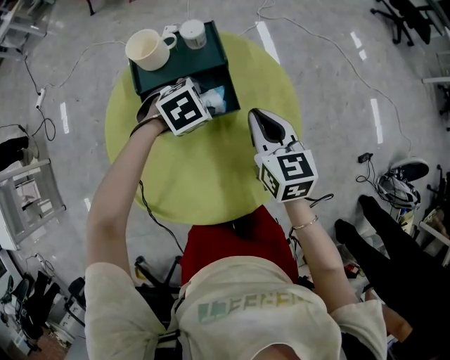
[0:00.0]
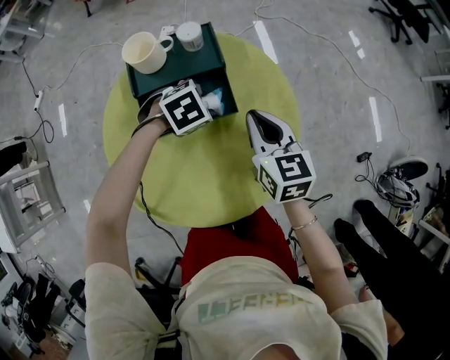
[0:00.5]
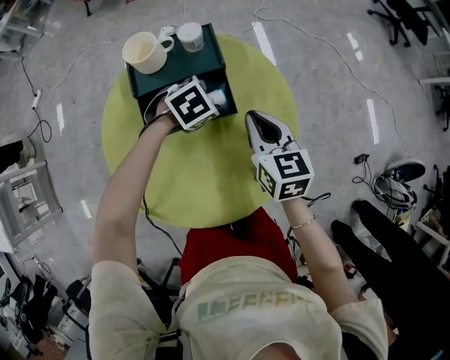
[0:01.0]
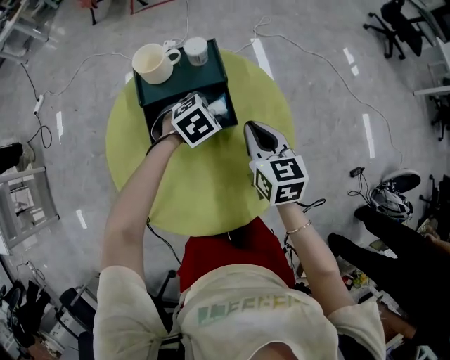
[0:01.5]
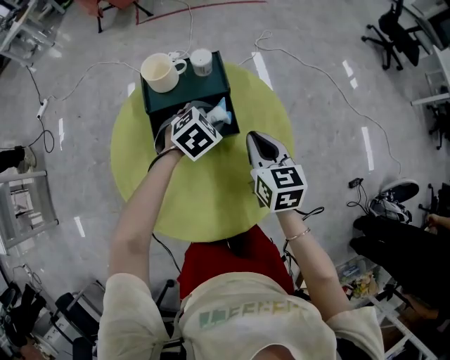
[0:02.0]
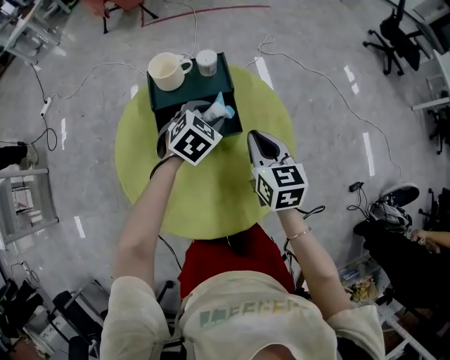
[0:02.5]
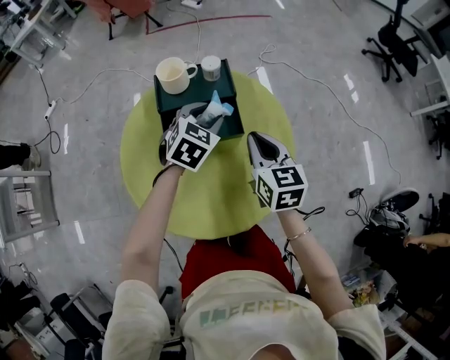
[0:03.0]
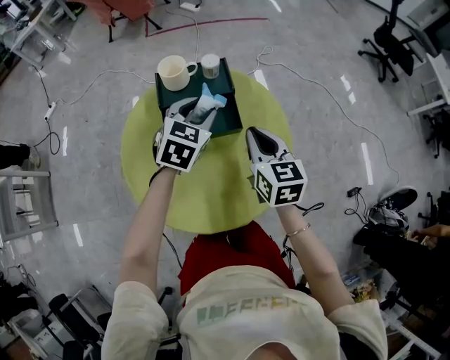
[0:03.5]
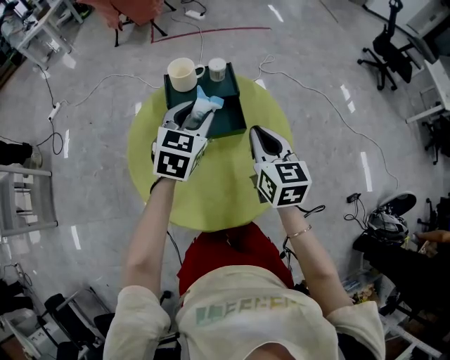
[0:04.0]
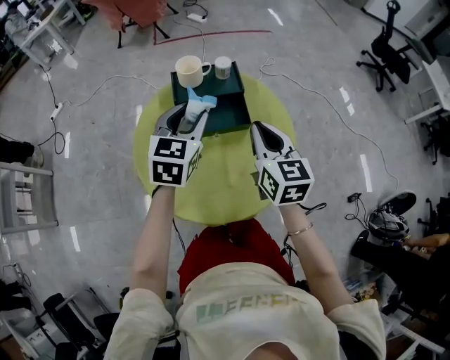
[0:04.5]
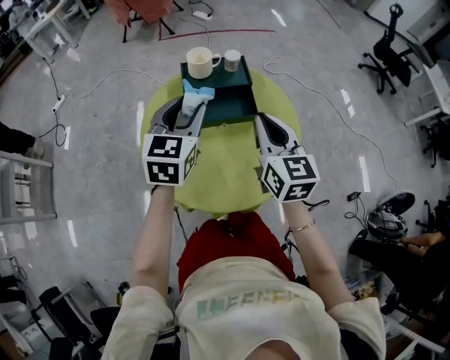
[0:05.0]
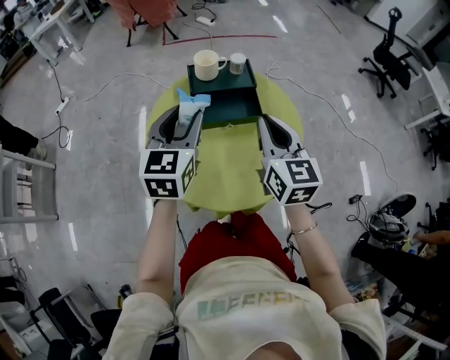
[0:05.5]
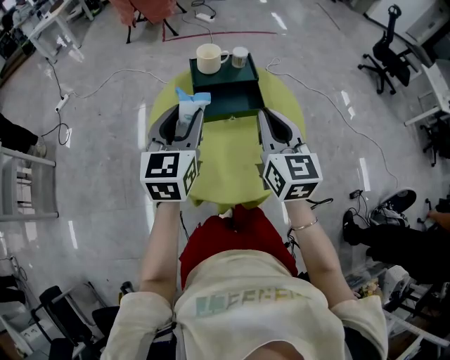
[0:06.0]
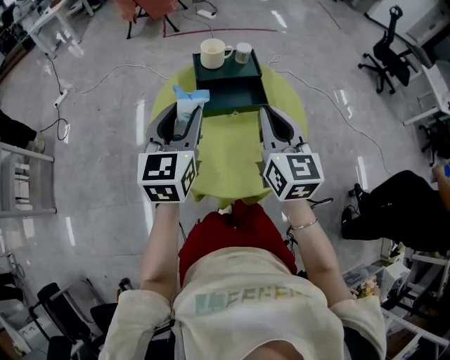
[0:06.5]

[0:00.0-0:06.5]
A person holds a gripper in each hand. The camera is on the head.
0:00.0 to 0:02.0: The grippers make only small movements.
0:02.0 to 0:04.5: The left gripper is displaced upward, backward and to the left by about 25 cm, and angles its fingers upward, by some 30 degrees, while the right gripper is displaced upward and backward by roughly 15 cm.
0:04.5 to 0:06.5: Both grippers move backward, to the left and upward, some 15 cm.

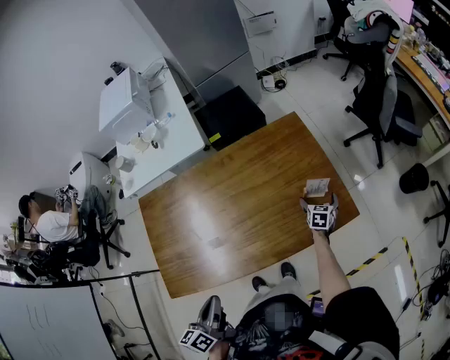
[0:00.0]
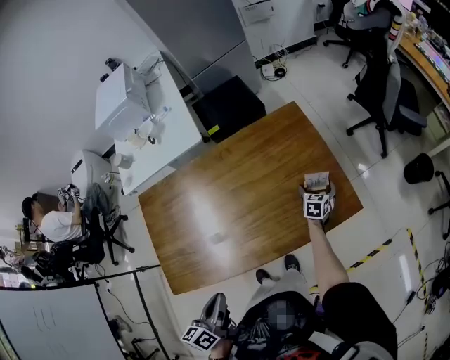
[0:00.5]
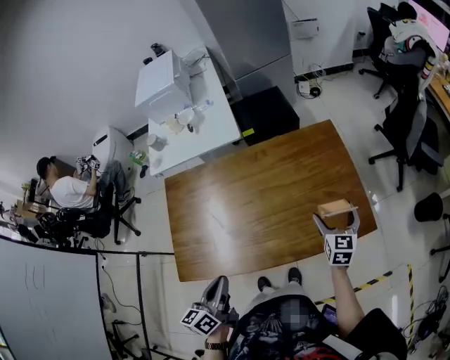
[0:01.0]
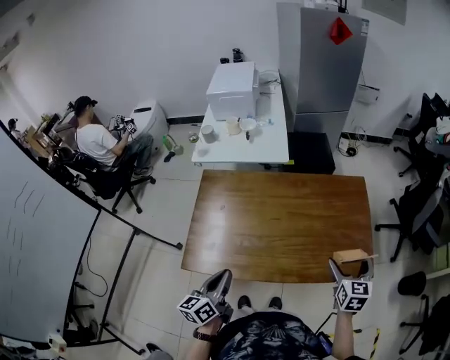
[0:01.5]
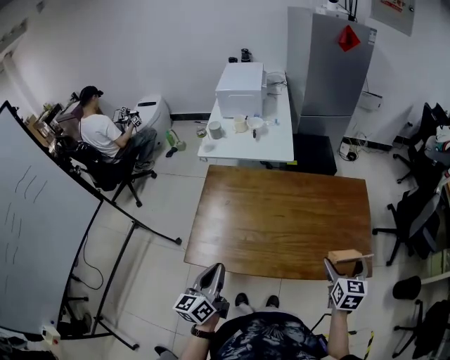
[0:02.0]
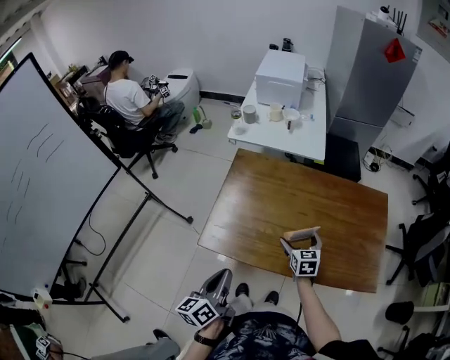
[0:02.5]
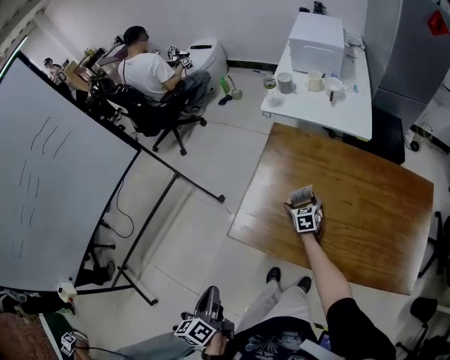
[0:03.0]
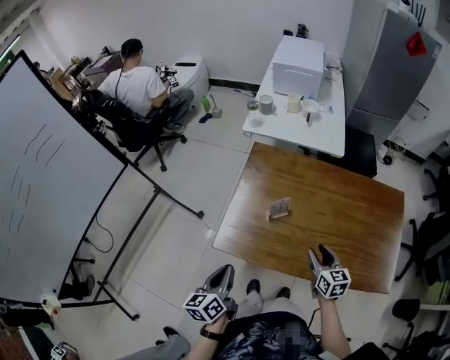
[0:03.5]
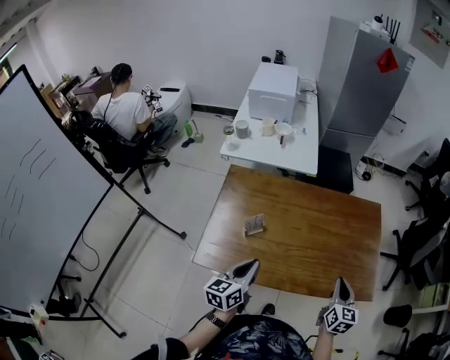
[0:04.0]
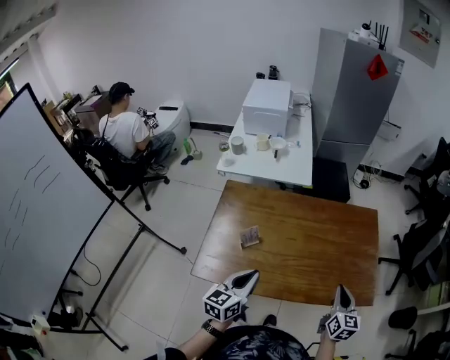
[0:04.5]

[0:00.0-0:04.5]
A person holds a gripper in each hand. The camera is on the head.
0:00.0 to 0:02.0: The right gripper heads upward, covering about 30 cm, and rotates approximately 30 degrees. The left gripper moves some 15 cm, and rotates roughly 20 degrees.
0:02.0 to 0:04.5: The right gripper goes downward and returns, approximately 35 cm each way, and closes, while the left gripper travels downward and back again, some 10 cm each way, and swivels roughly 20 degrees.

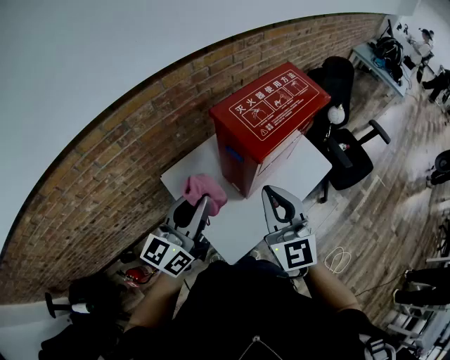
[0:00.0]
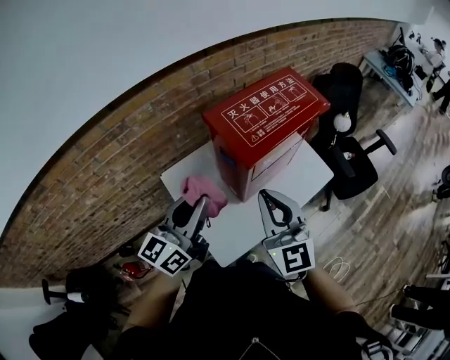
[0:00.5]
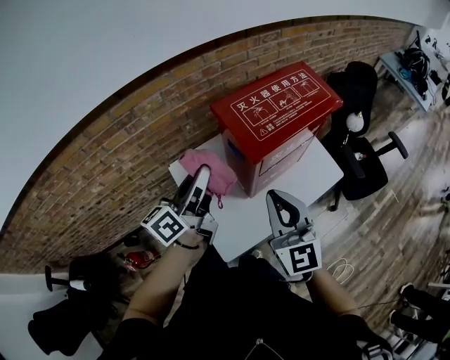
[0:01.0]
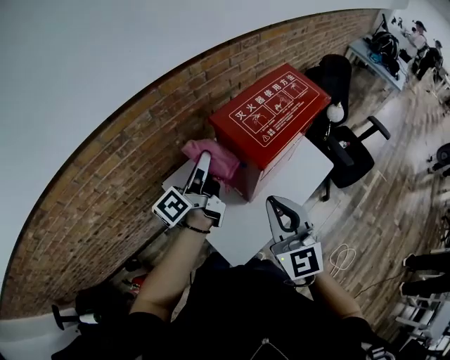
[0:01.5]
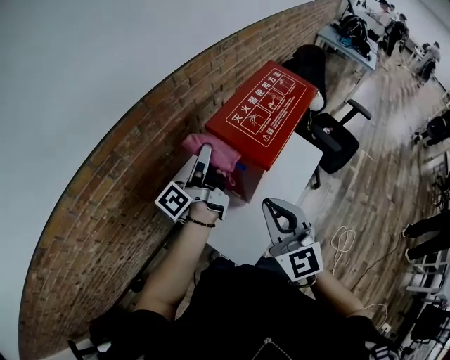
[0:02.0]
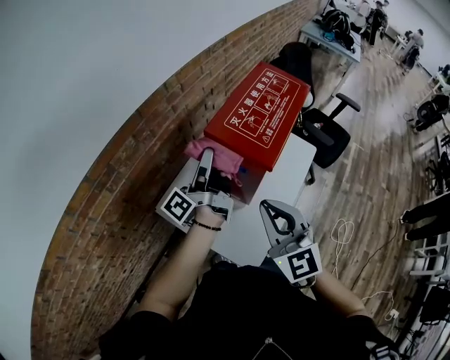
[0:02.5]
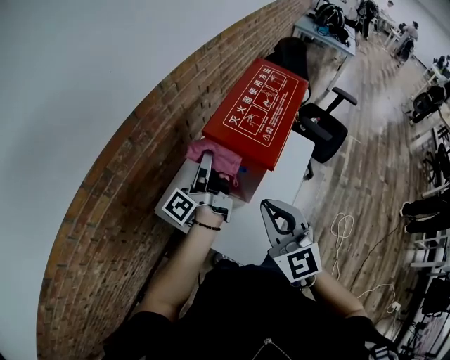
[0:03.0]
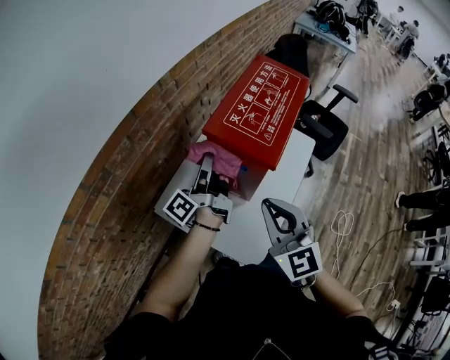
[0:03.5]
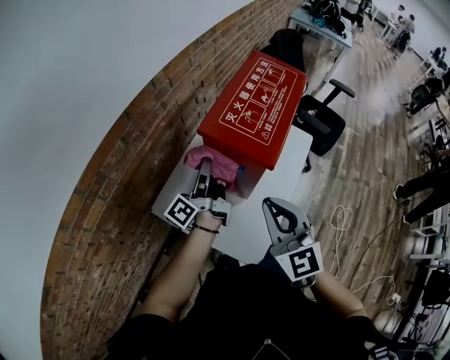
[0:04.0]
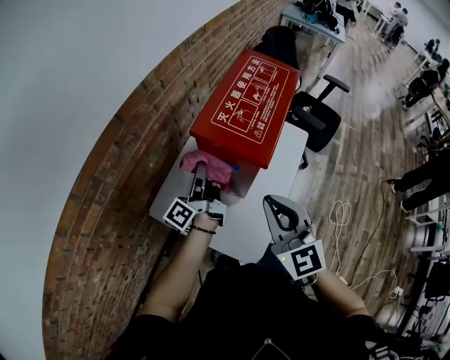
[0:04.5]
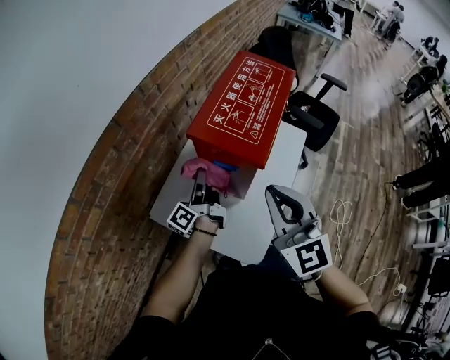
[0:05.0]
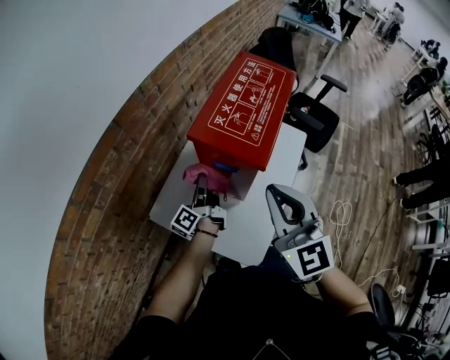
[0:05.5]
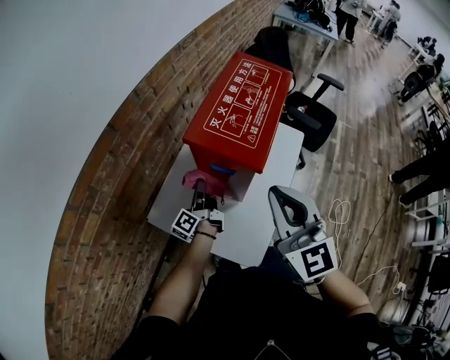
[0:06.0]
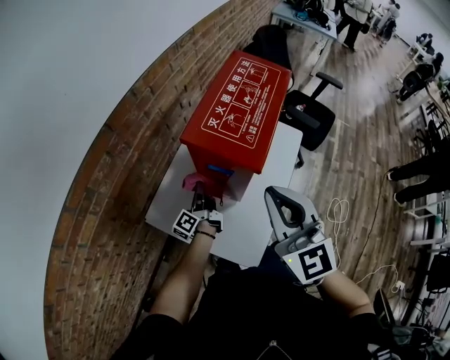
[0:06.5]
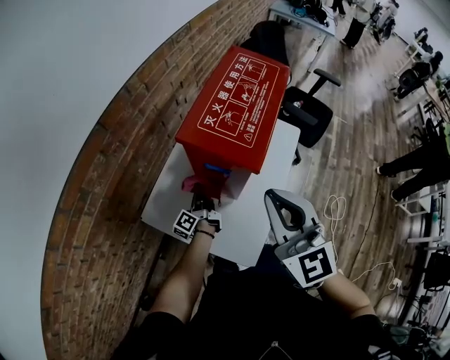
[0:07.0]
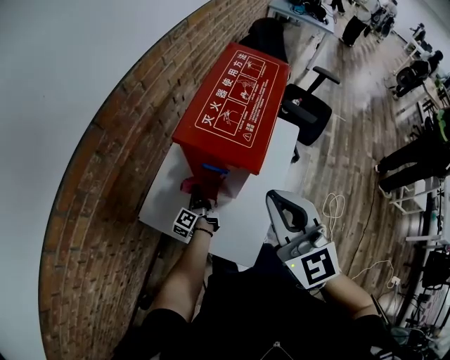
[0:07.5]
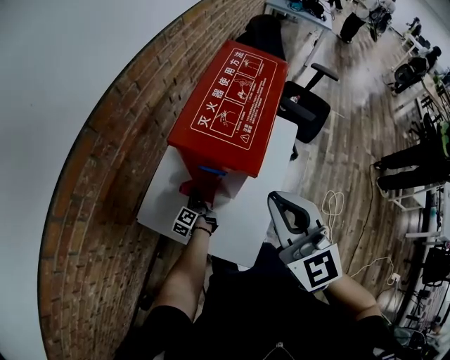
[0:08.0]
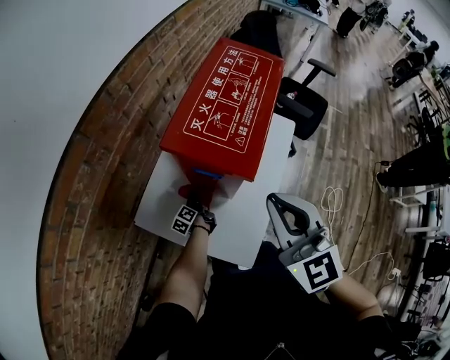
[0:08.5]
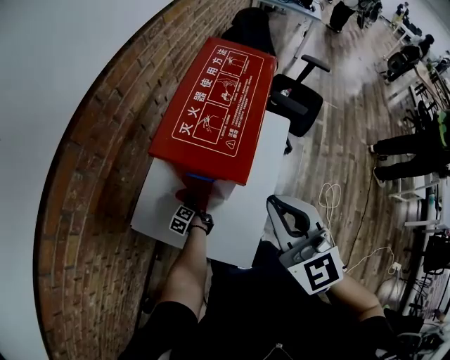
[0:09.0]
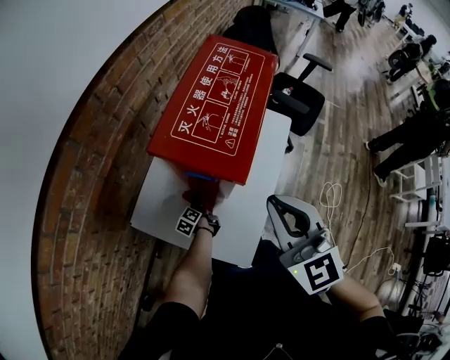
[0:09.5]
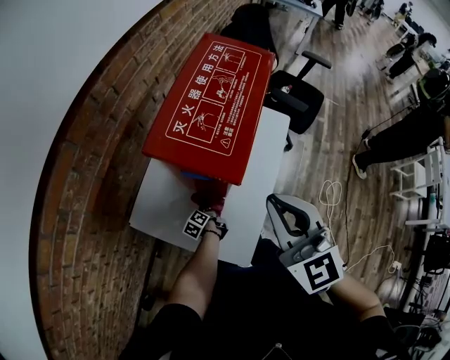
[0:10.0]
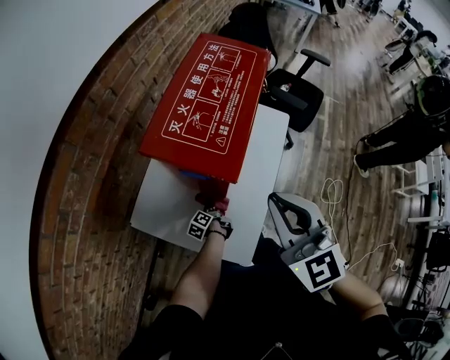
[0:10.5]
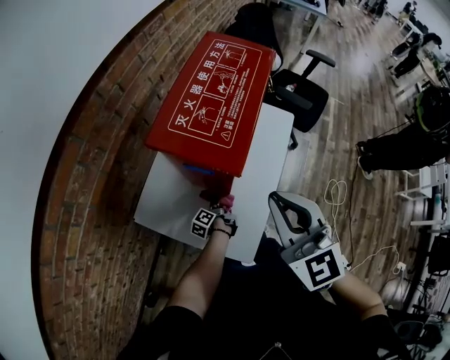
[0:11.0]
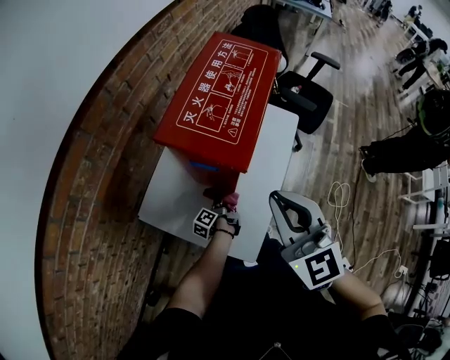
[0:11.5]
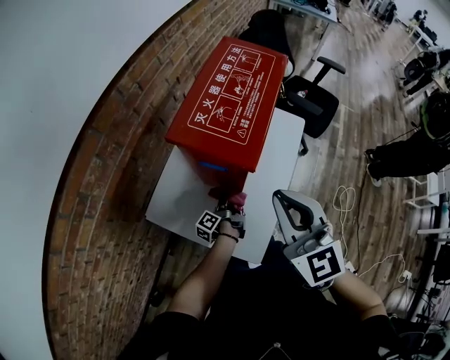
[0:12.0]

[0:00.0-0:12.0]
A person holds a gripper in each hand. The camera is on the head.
0:04.0 to 0:06.0: The right gripper travels upward by some 5 cm.

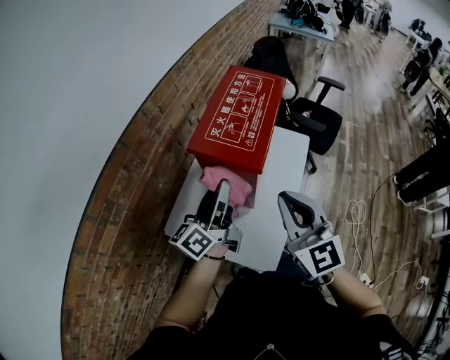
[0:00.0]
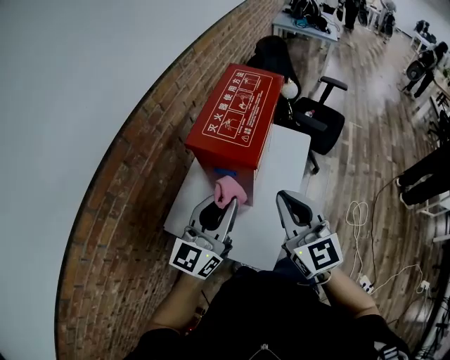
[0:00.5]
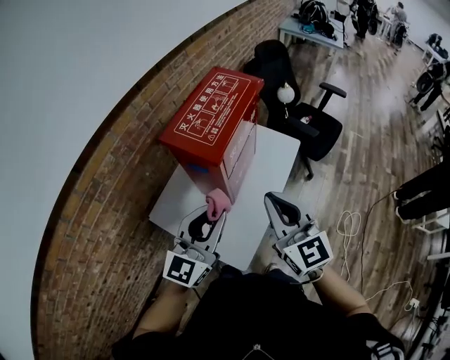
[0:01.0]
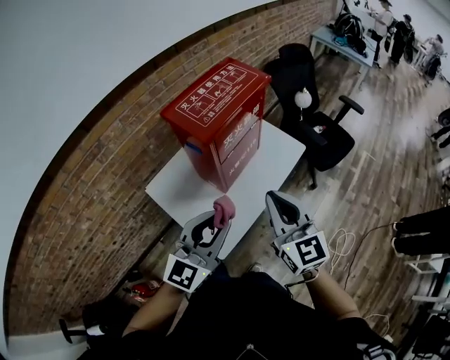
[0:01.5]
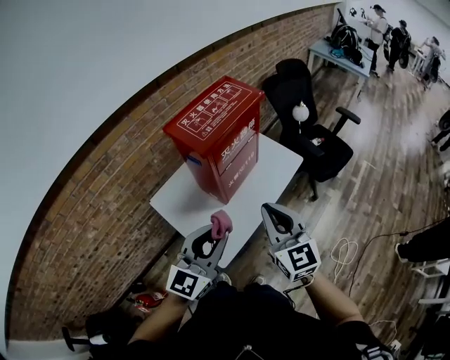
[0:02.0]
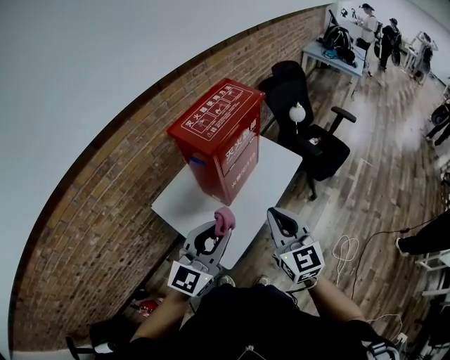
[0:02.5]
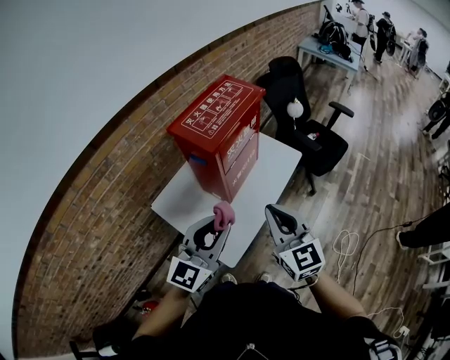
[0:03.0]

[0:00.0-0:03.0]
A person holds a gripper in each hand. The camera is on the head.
0:00.0 to 0:01.5: The right gripper shifts by approximately 15 cm.

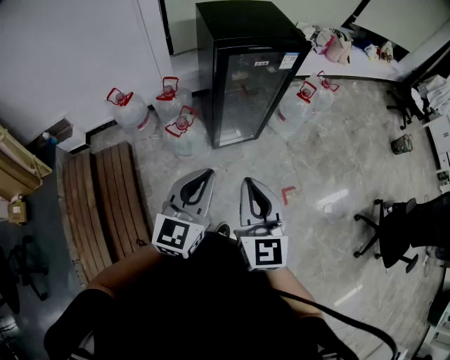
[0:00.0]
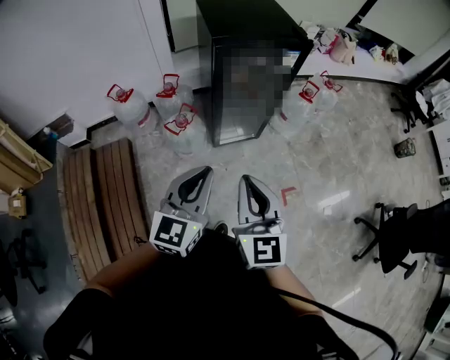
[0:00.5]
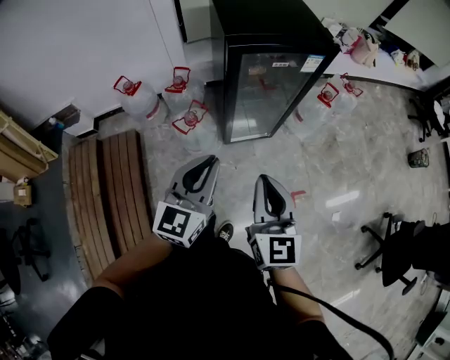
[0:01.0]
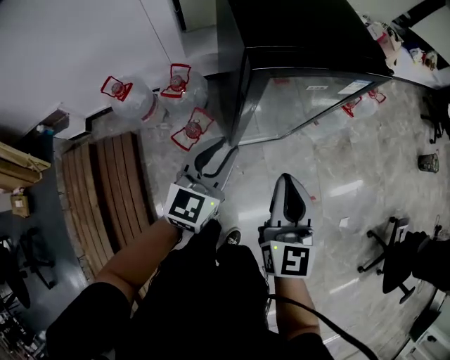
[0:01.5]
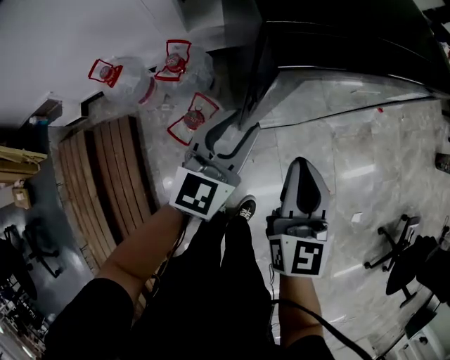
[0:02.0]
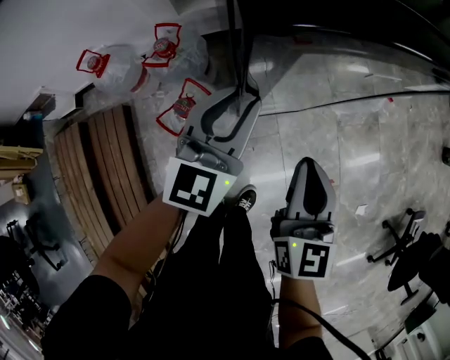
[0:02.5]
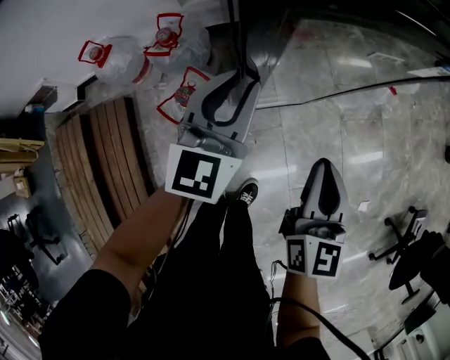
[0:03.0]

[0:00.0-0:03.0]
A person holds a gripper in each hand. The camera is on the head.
0:00.0 to 0:01.5: The right gripper travels forward by roughly 30 cm; the left gripper heads forward and downward, covering some 35 cm.
0:01.5 to 0:03.0: The right gripper shifts roughly 20 cm downward and forward. The left gripper goes approximately 15 cm forward and downward.
